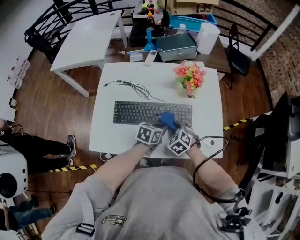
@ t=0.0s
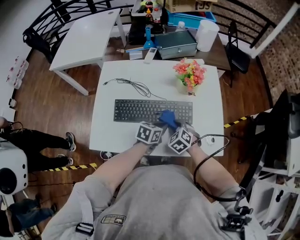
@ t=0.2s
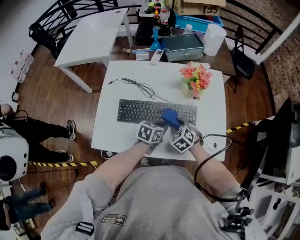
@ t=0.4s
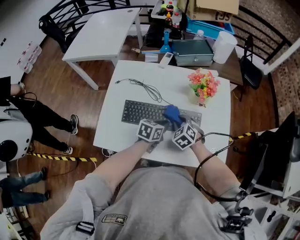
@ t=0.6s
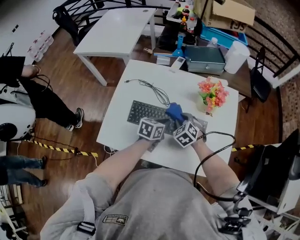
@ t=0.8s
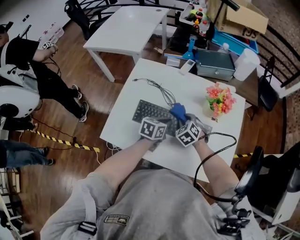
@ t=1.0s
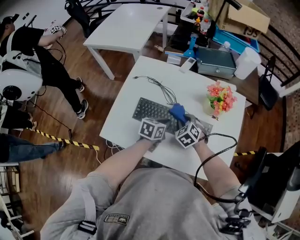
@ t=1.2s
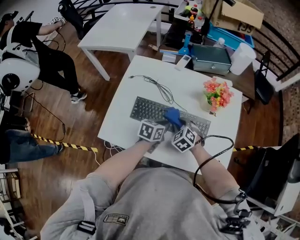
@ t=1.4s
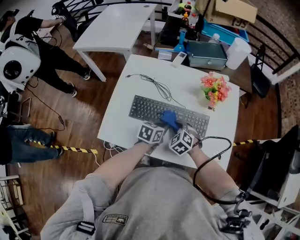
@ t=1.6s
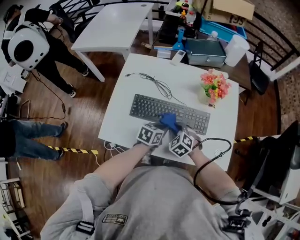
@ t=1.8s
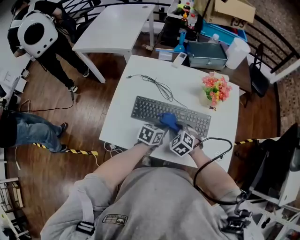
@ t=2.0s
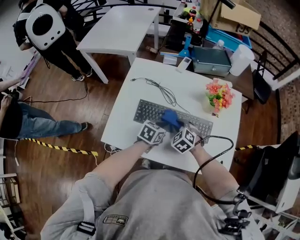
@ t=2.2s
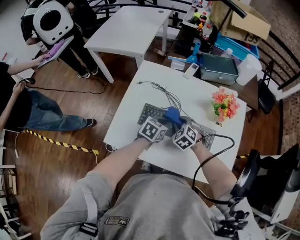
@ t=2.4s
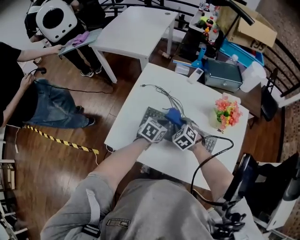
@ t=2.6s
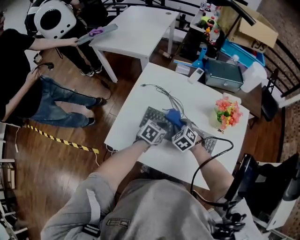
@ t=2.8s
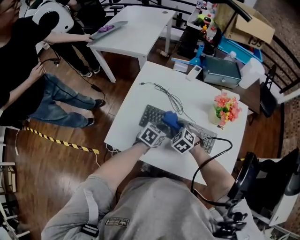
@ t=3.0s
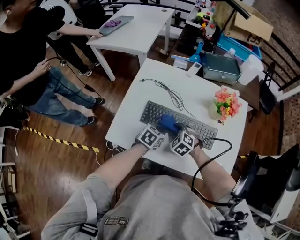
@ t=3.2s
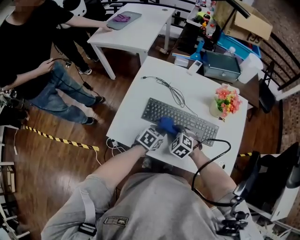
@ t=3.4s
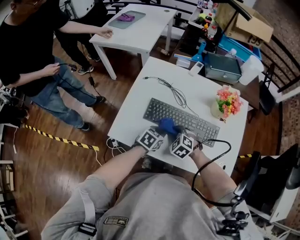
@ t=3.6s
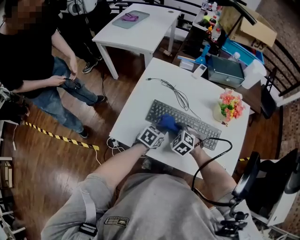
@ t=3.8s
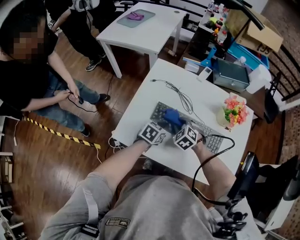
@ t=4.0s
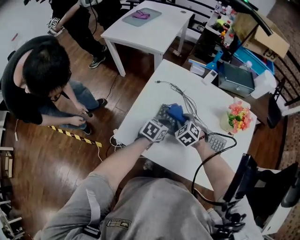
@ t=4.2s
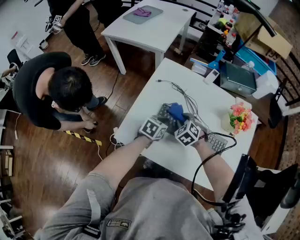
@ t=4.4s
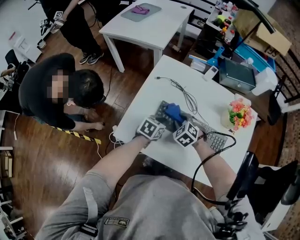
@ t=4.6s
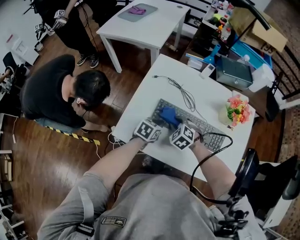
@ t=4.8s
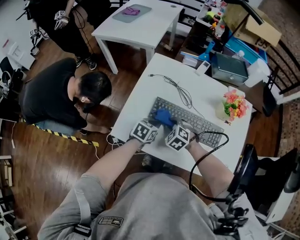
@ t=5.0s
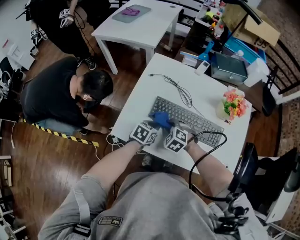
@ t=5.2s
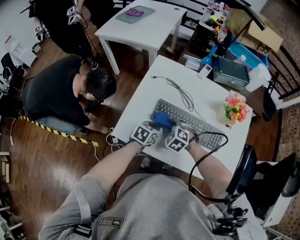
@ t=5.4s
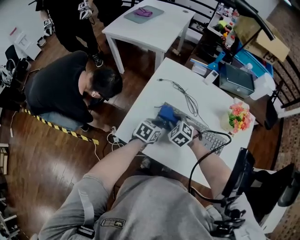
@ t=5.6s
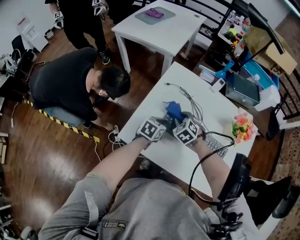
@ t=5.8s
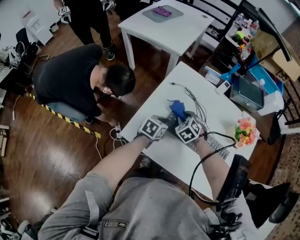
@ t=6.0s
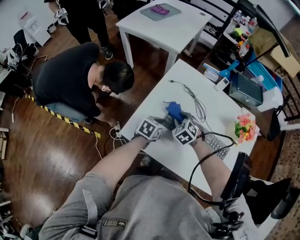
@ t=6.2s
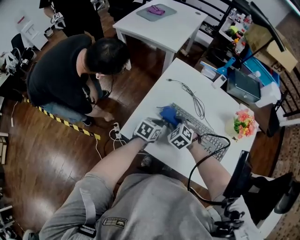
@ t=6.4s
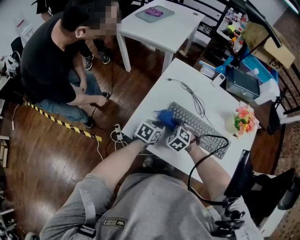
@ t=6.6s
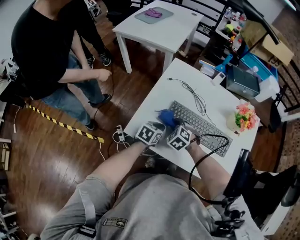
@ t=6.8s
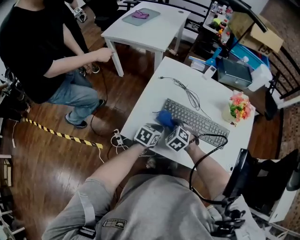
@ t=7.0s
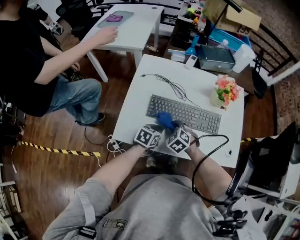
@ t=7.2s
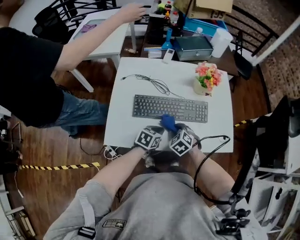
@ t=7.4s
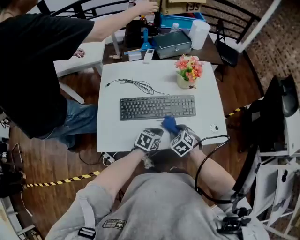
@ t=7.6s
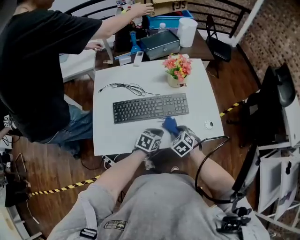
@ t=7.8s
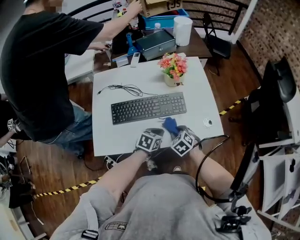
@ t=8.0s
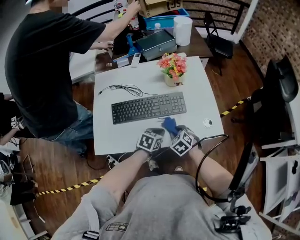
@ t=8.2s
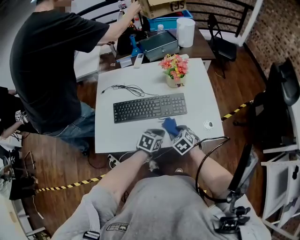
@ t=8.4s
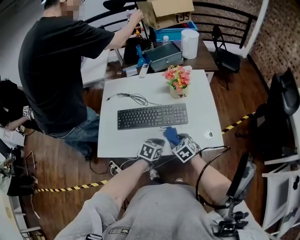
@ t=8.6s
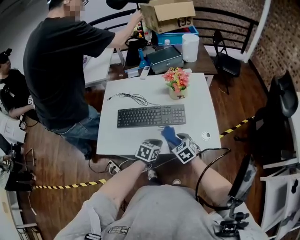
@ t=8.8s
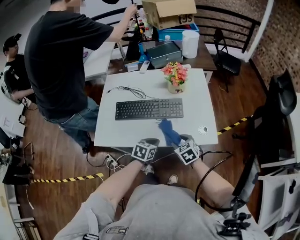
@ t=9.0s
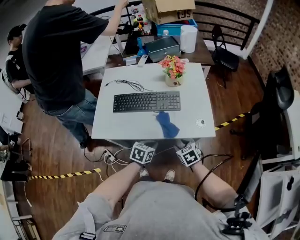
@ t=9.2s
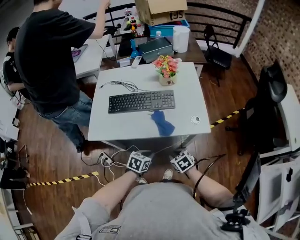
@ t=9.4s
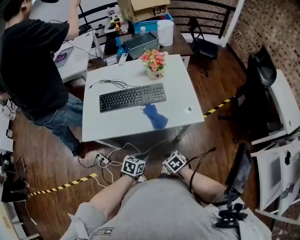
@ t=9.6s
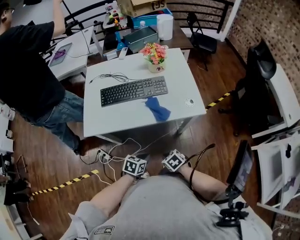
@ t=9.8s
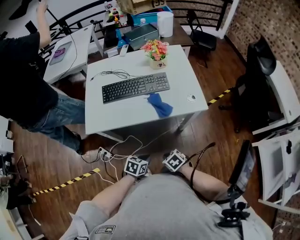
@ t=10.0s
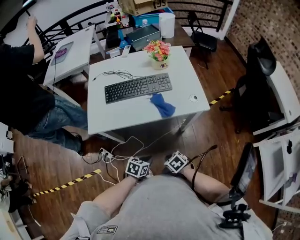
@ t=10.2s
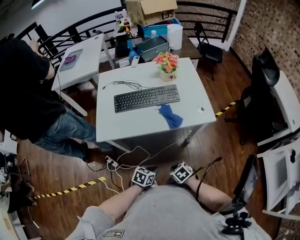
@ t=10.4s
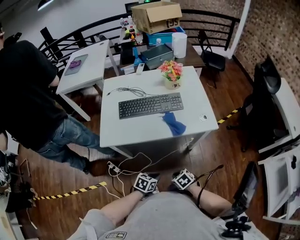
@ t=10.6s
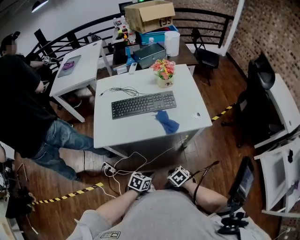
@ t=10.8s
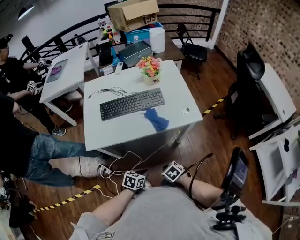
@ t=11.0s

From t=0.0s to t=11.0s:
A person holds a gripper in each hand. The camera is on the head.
From t=0.0s to t=1.6s: The grippers both shift to the left by some 10 cm. The right gripper travels forward and back again, about 10 cm each way.
From t=1.6s to t=3.2s: Both grippers move to the left, approximately 5 cm. The right gripper reaches about 10 cm forward, then returns, while the left gripper goes forward and returns, approximately 5 cm each way.
From t=3.2s to t=4.8s: Both grippers move to the left, approximately 5 cm. The right gripper travels forward and back again, approximately 5 cm each way.
From t=4.8s to t=6.2s: The grippers both shift to the left by approximately 5 cm.
From t=6.2s to t=7.8s: The left gripper changes place by roughly 25 cm, and swivels approximately 40 degrees. Meanwhile the right gripper moves roughly 30 cm, and turns by approximately 40 degrees.
From t=7.8s to t=9.4s: The right gripper is displaced backward and to the right by some 20 cm, and swivels approximately 20 degrees, while the left gripper shifts approximately 15 cm backward.
From t=9.4s to t=11.0s: The two grippers go some 15 cm backward and to the left. The right gripper closes its fingers.

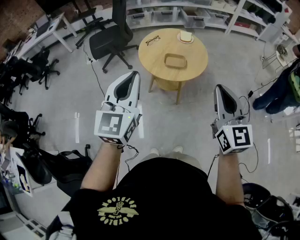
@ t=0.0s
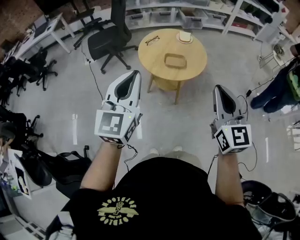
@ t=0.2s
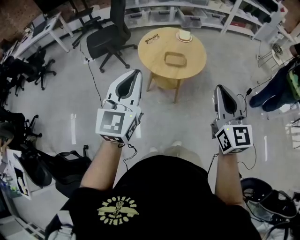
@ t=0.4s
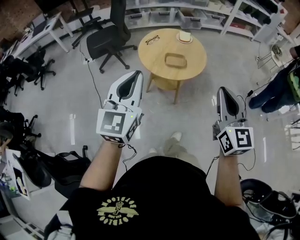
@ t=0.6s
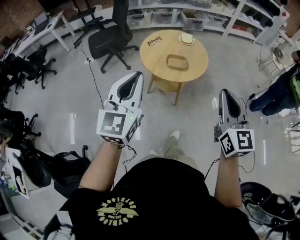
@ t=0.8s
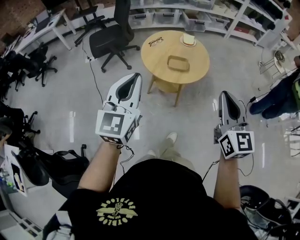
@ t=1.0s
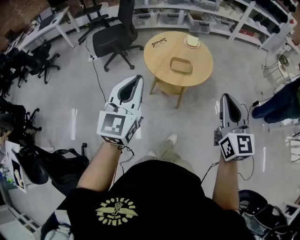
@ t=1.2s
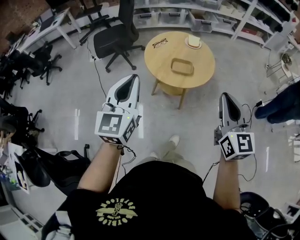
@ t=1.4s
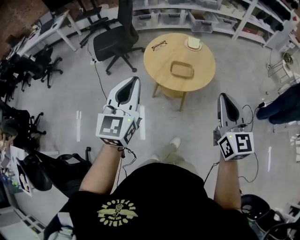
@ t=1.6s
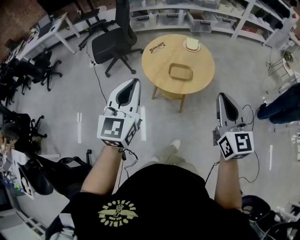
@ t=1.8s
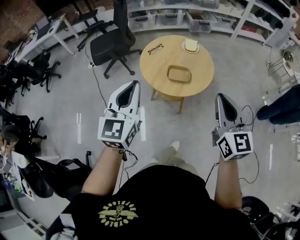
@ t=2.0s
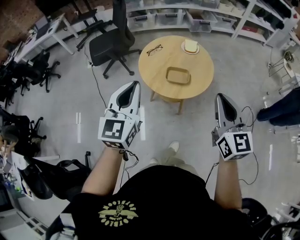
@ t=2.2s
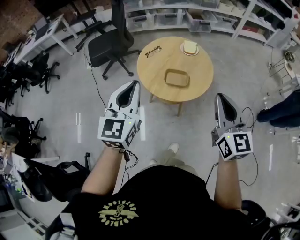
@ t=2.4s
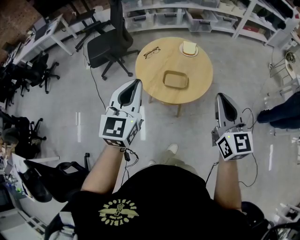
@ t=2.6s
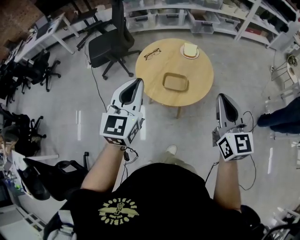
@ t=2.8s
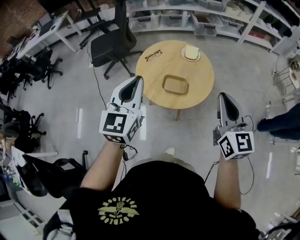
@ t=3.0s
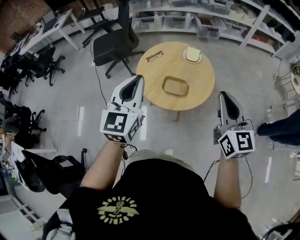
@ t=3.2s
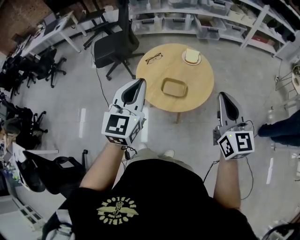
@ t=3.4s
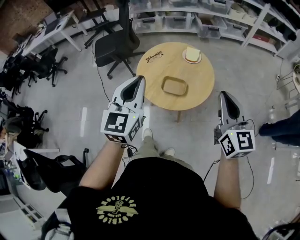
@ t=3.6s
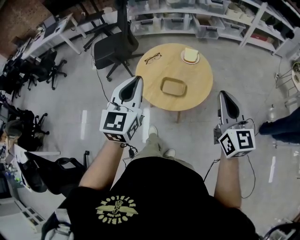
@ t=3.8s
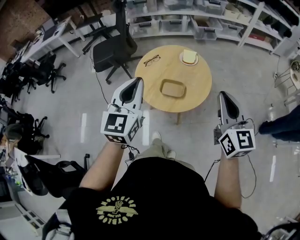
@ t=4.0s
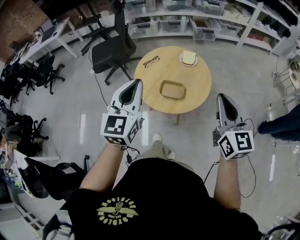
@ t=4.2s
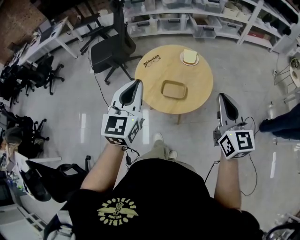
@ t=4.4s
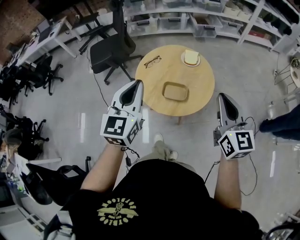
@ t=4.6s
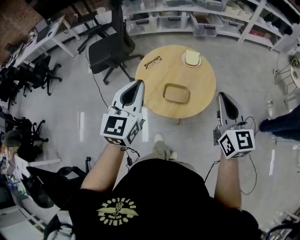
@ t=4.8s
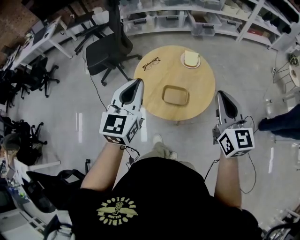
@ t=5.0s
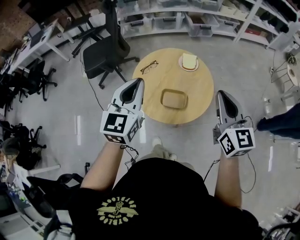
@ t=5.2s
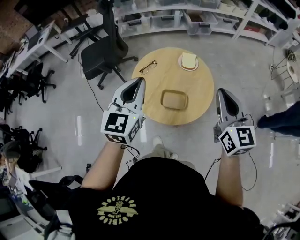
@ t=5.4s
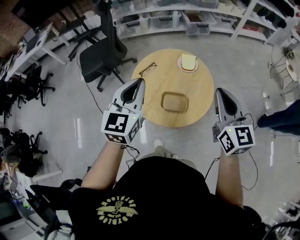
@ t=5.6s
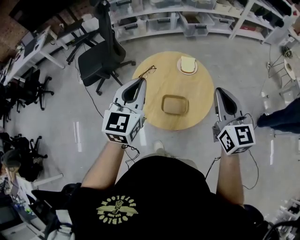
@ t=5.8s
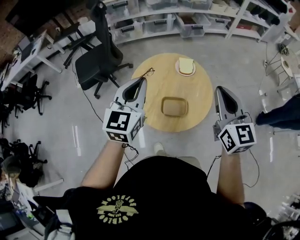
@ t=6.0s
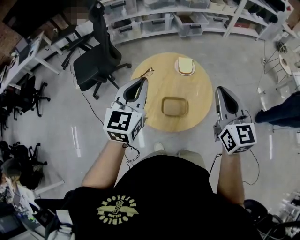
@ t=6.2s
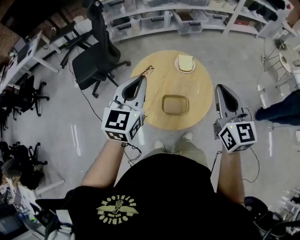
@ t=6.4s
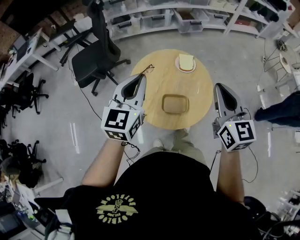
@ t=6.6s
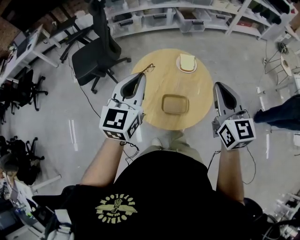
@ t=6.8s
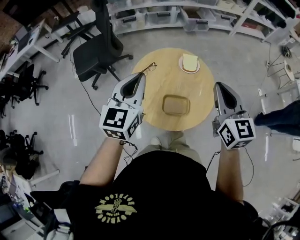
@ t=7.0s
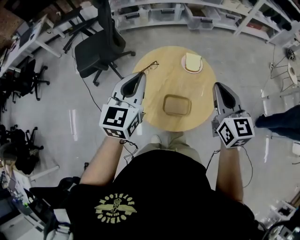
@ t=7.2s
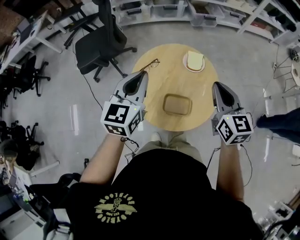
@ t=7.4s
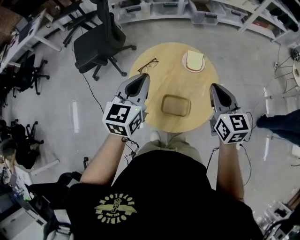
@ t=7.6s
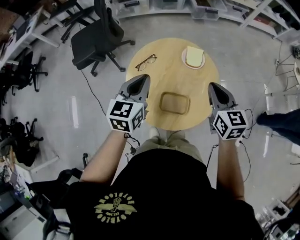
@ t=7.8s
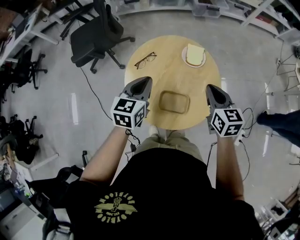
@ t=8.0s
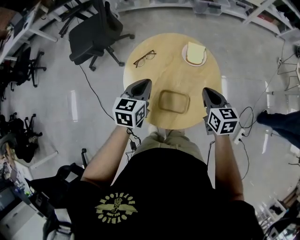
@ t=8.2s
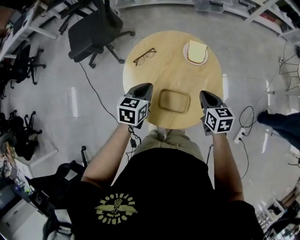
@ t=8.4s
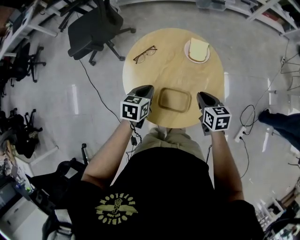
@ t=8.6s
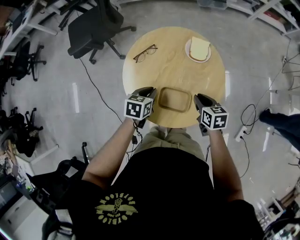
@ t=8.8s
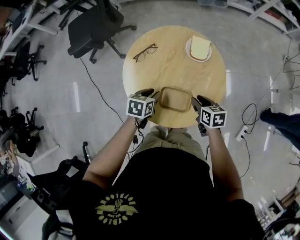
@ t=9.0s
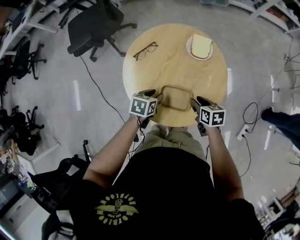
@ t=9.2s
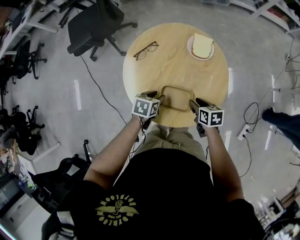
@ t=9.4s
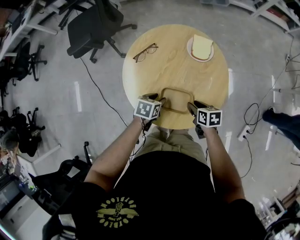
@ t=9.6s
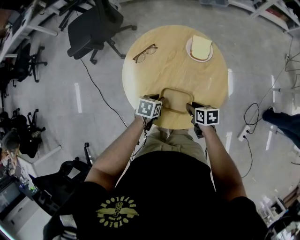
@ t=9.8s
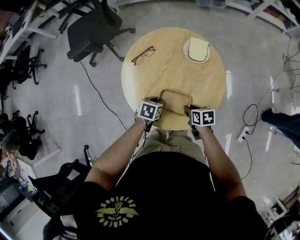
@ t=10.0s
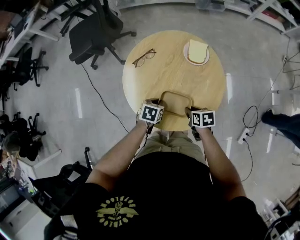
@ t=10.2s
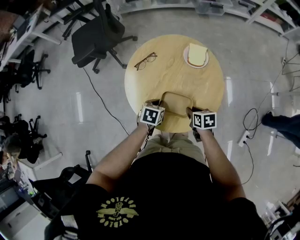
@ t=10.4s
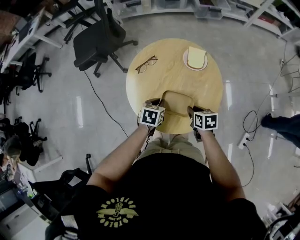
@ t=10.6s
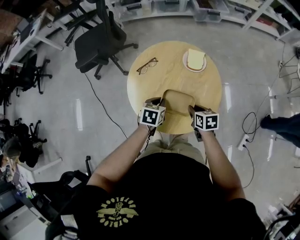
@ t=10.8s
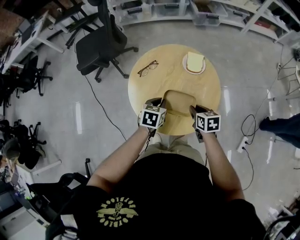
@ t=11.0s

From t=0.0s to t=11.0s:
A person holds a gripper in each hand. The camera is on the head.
From t=0.0s to t=1.6s: The grippers both shift forward by about 5 cm.
From t=1.6s to t=3.2s: Both grippers travel together forward and to the right, roughly 20 cm.
From t=3.2s to t=4.8s: The grippers both shift forward by about 5 cm.
From t=4.8s to t=6.2s: The two grippers go approximately 10 cm forward.
From t=6.2s to t=7.8s: The two grippers go about 20 cm downward and forward.
From t=7.8s to t=9.4s: Both grippers move downward, approximately 30 cm. The right gripper rotates roughly 40 degrees, and opens. The left gripper points its fingers approximately 30 degrees further downward, and opens.
From t=9.4s to t=11.0s: Both grippers move upward, roughly 10 cm. The right gripper closes. The left gripper closes its fingers.

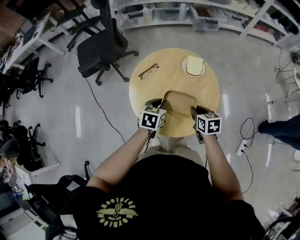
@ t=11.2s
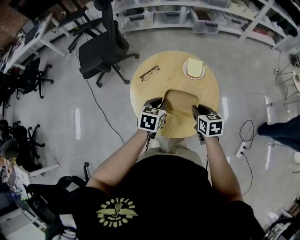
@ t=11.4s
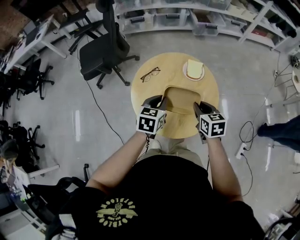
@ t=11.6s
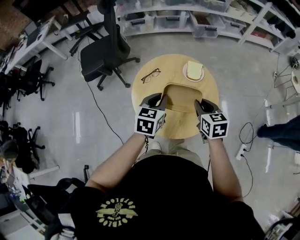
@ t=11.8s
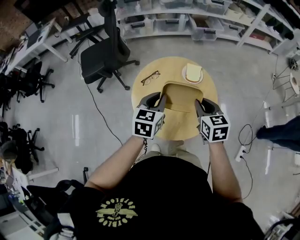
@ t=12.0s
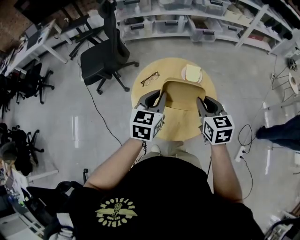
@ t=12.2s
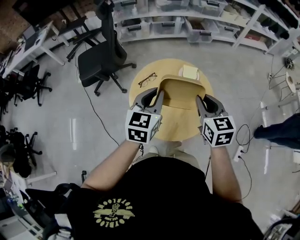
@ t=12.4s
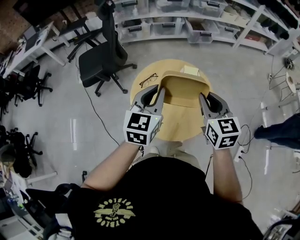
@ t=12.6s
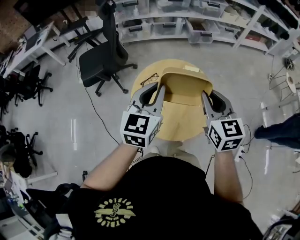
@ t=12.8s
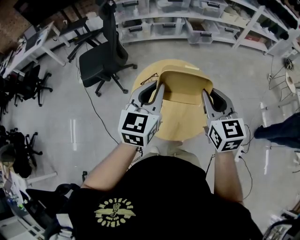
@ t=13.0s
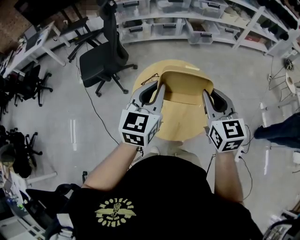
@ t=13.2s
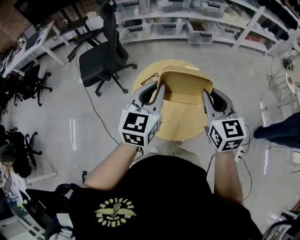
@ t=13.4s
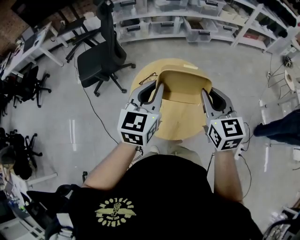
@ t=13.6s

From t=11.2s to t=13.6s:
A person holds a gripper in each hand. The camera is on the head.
From t=11.2s to t=12.4s: Both grippers move upward, about 25 cm. The right gripper swivels approximately 30 degrees. The left gripper turns by some 30 degrees.
From t=12.4s to t=13.6s: The two grippers go about 5 cm upward.
